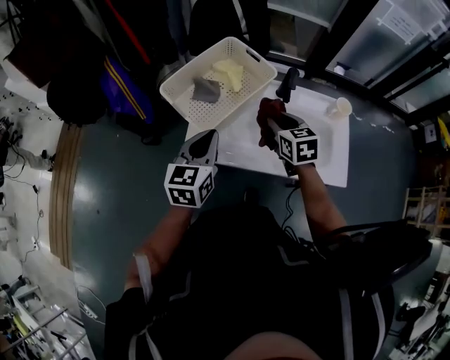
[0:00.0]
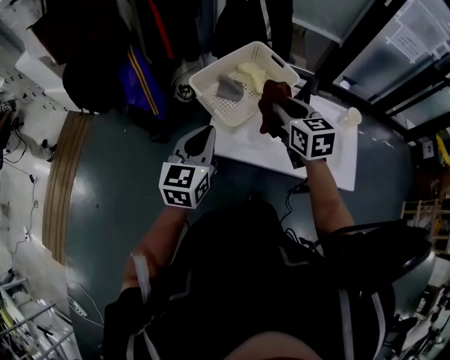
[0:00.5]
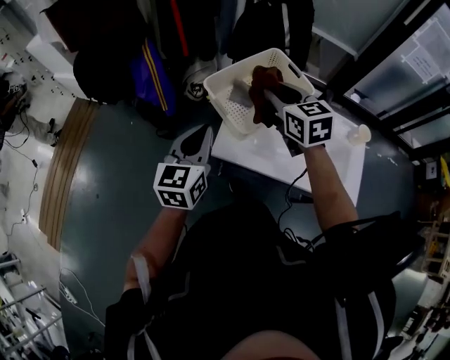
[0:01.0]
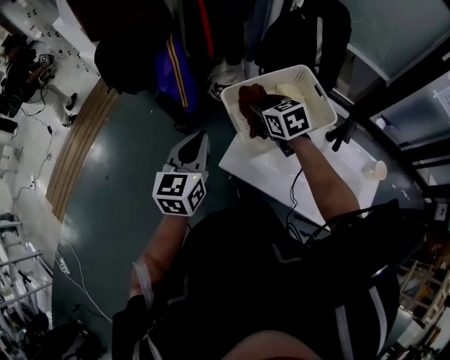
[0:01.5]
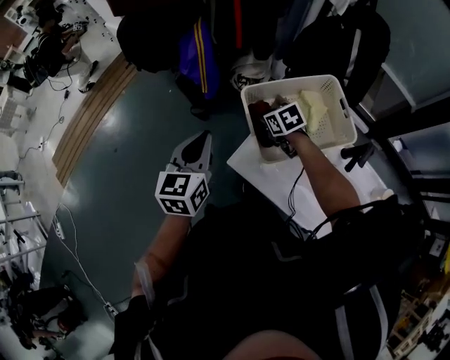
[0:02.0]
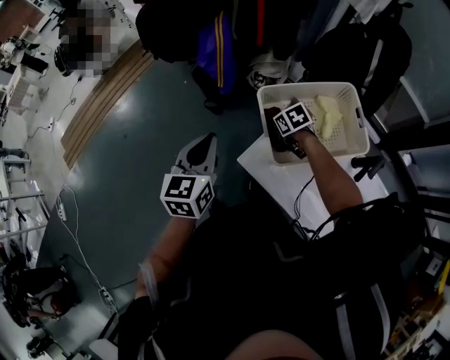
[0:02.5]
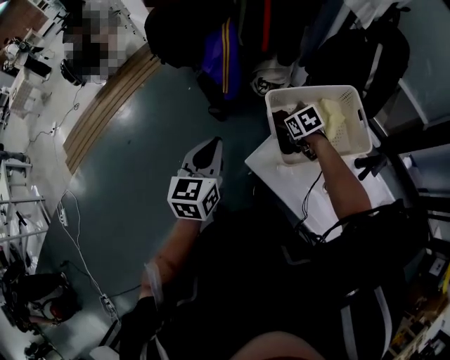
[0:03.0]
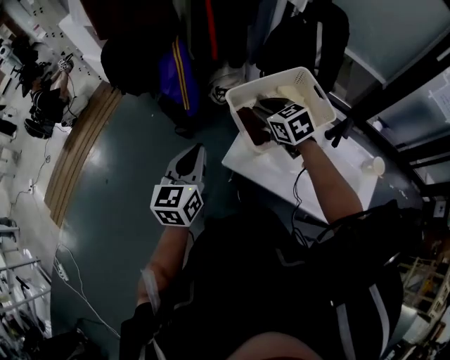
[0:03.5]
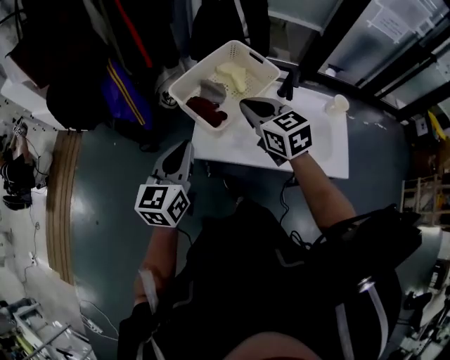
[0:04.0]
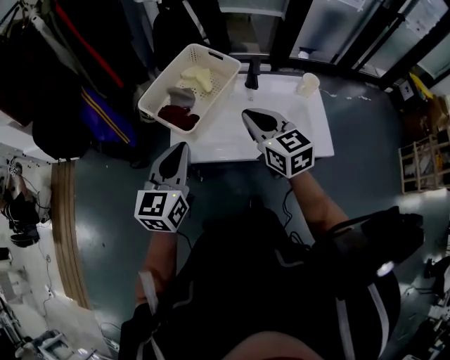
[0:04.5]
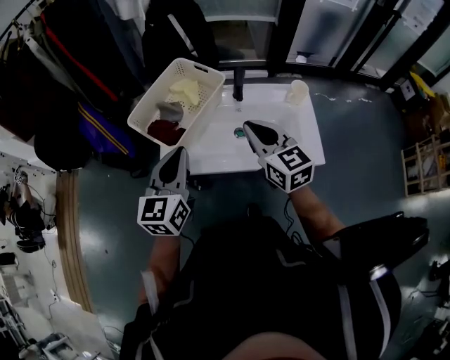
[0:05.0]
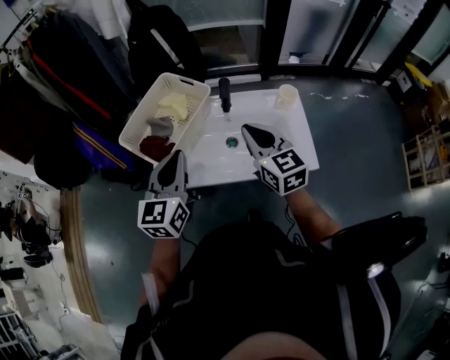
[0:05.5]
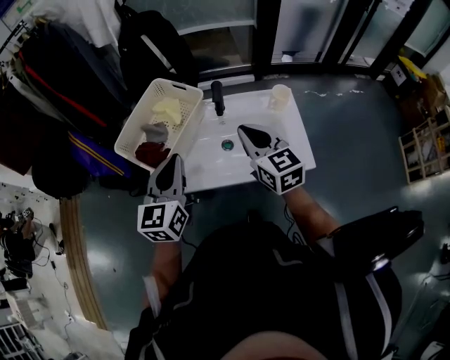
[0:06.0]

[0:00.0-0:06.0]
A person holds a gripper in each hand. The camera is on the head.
0:00.0 to 0:02.0: The right gripper changes place by roughly 30 cm, and changes its angle by roughly 50 degrees, while the left gripper shifts by approximately 20 cm, and turns by approximately 30 degrees.
0:02.0 to 0:04.0: The right gripper shifts roughly 20 cm upward, swivels approximately 40 degrees, and closes its fingers; the left gripper shifts by some 10 cm, and changes its angle by roughly 30 degrees.
0:04.0 to 0:06.0: Both grippers travel together to the right, roughly 20 cm. The right gripper changes its angle by approximately 20 degrees.

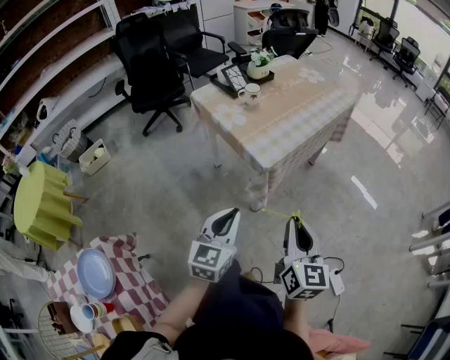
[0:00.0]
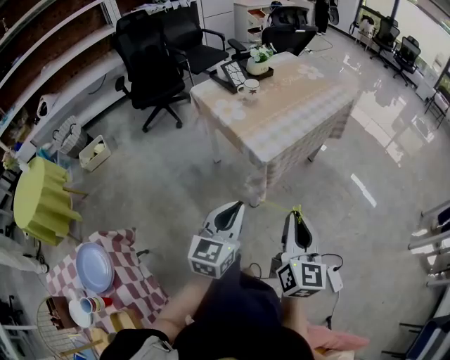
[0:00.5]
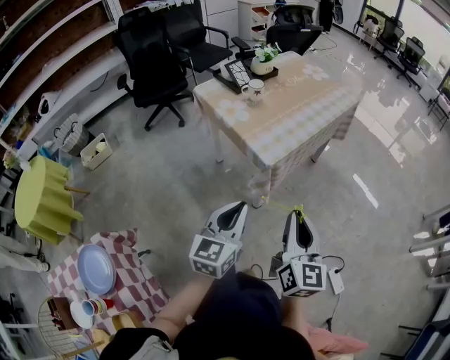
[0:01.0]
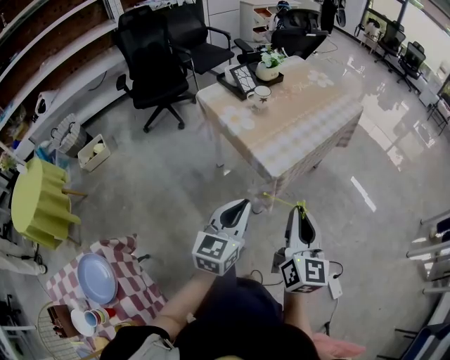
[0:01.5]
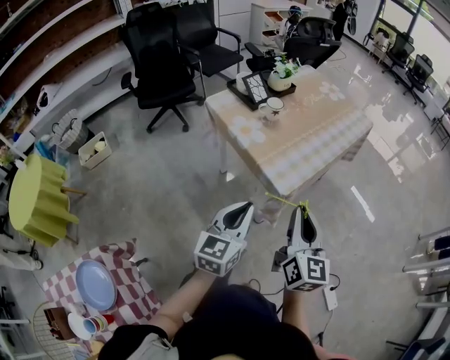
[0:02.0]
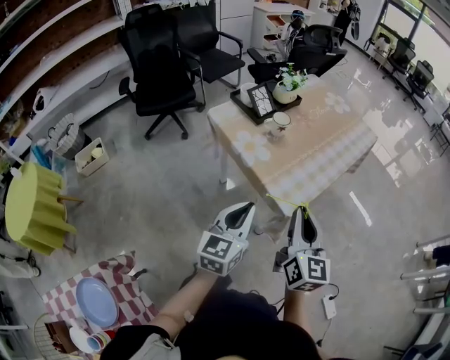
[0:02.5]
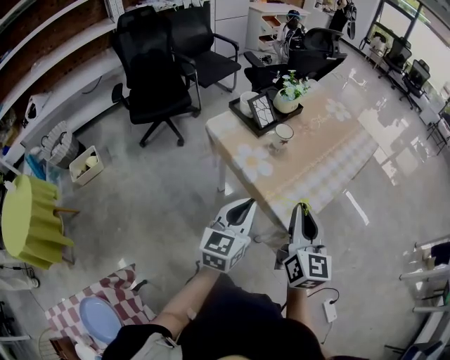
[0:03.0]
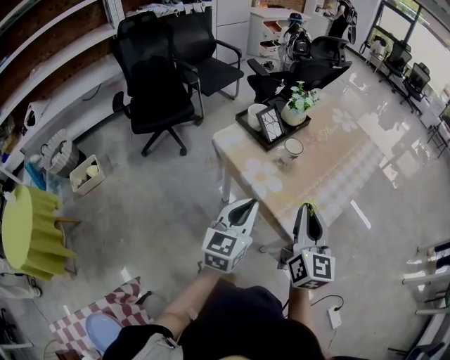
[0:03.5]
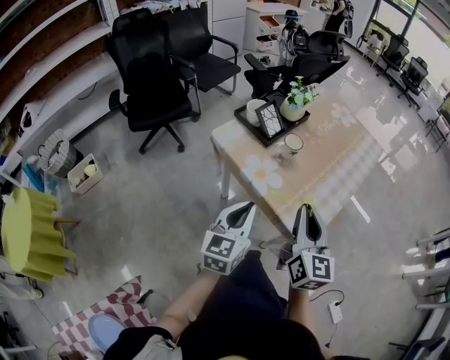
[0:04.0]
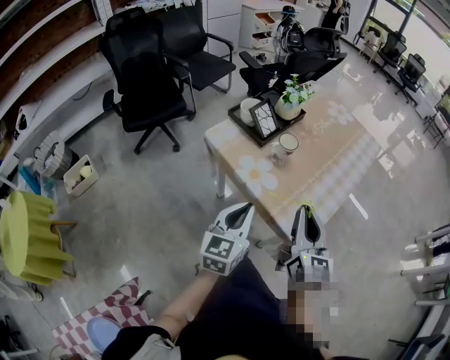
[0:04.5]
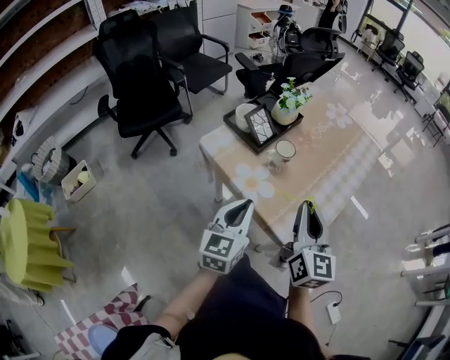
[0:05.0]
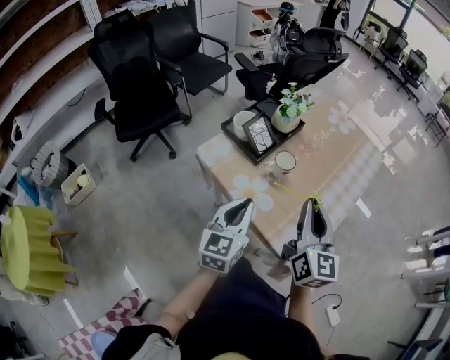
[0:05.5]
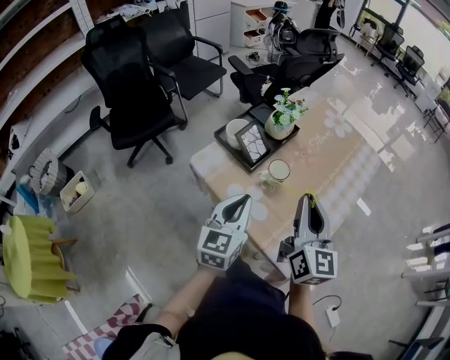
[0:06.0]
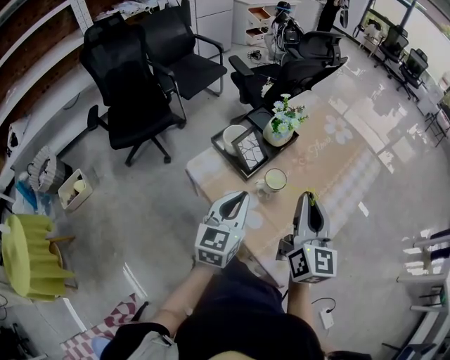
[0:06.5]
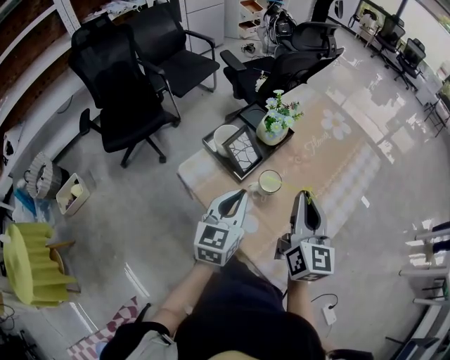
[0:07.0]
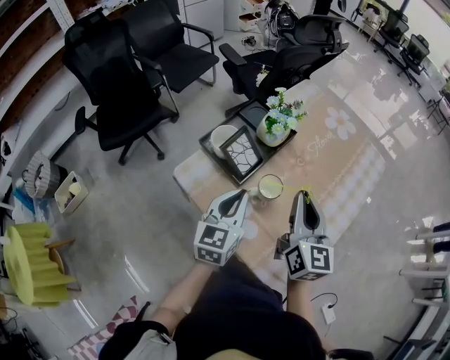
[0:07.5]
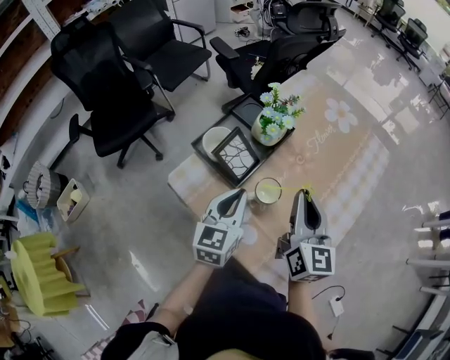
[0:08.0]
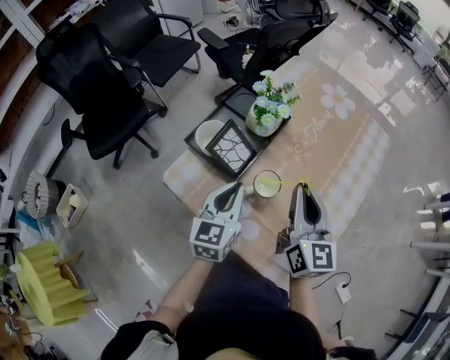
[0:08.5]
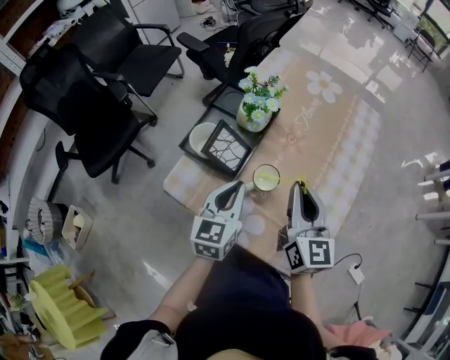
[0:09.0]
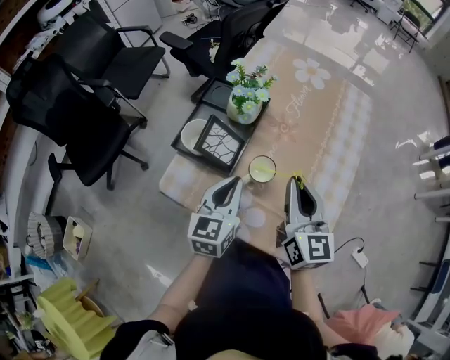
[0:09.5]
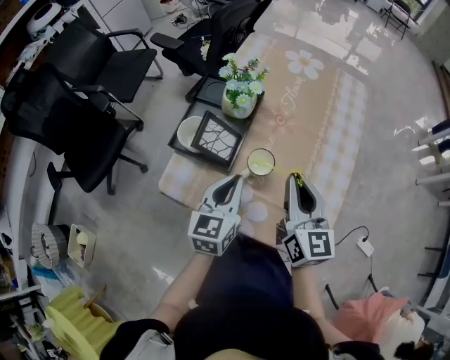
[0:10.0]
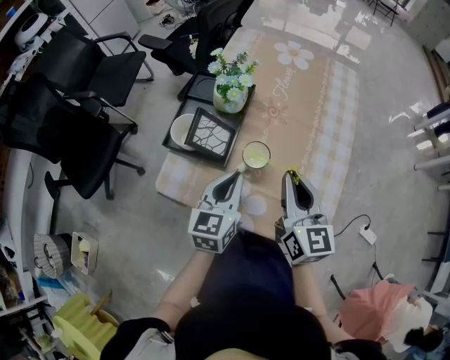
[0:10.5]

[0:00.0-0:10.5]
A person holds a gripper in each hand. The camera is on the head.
0:00.0 to 0:02.0: The left gripper goes roughly 10 cm forward. The right gripper goes approximately 15 cm forward and to the left.
0:02.0 to 0:04.0: Both grippers travel together forward and to the left, about 20 cm.
0:04.0 to 0:06.5: The grippers both shift forward by about 20 cm.
0:06.5 to 0:08.5: The two grippers go some 10 cm forward and downward.
0:08.5 to 0:10.5: The right gripper heads backward, covering some 5 cm.

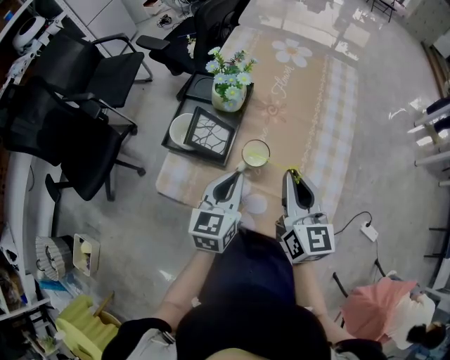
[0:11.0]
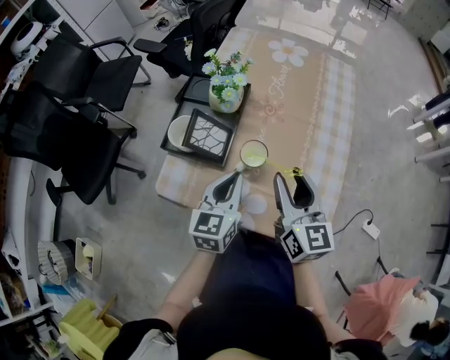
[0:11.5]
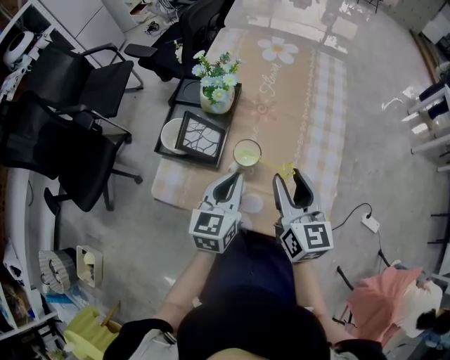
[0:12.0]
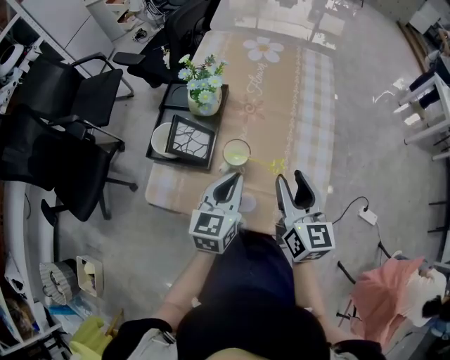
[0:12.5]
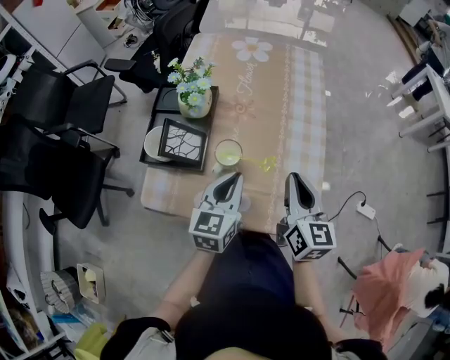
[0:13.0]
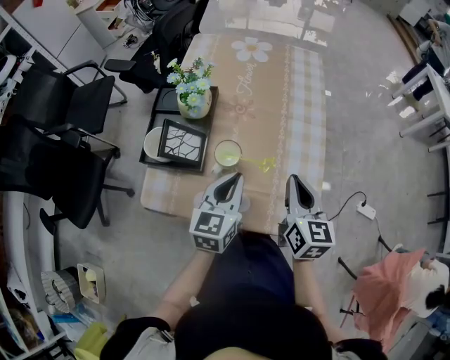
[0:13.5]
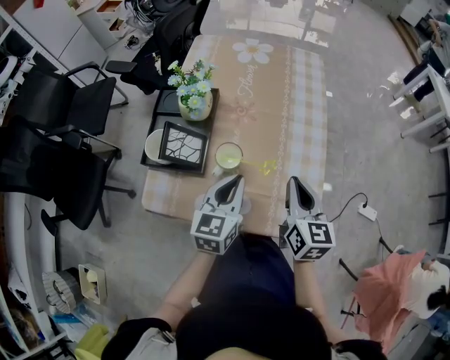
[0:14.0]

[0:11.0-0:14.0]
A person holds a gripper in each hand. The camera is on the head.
0:11.0 to 0:12.5: The right gripper ends up roughly 5 cm from where it was, and opens up.
0:12.5 to 0:14.0: The right gripper closes its fingers.

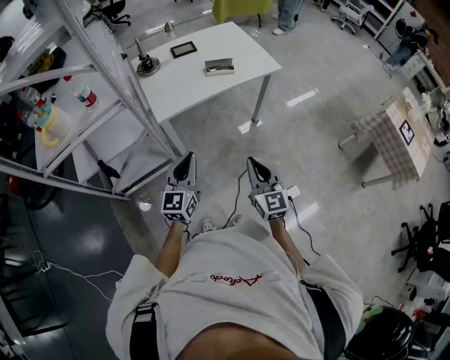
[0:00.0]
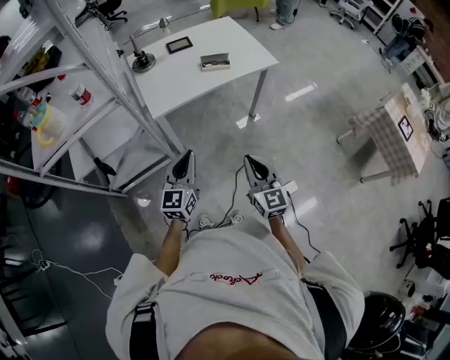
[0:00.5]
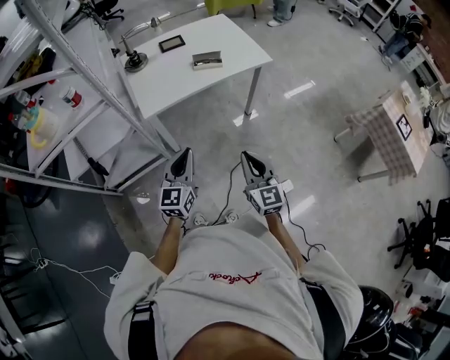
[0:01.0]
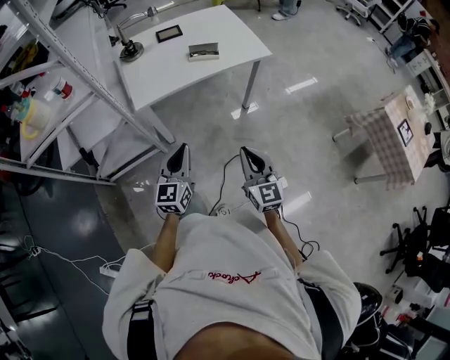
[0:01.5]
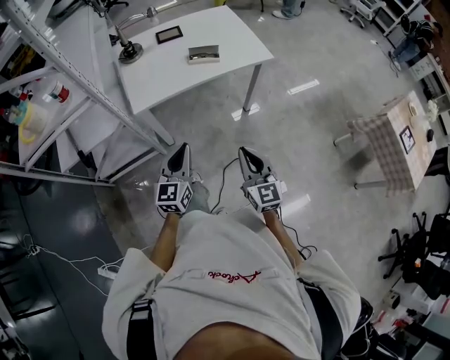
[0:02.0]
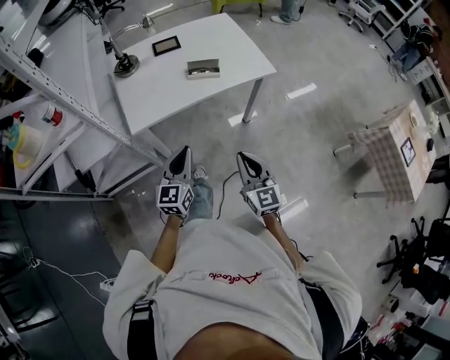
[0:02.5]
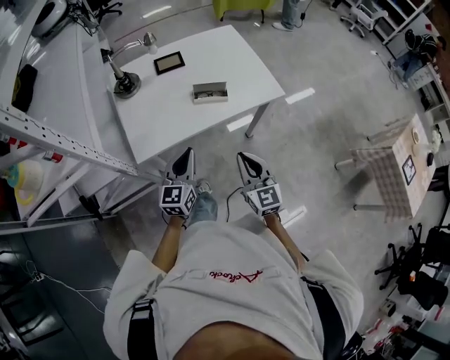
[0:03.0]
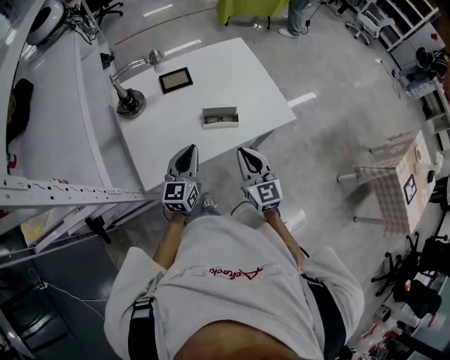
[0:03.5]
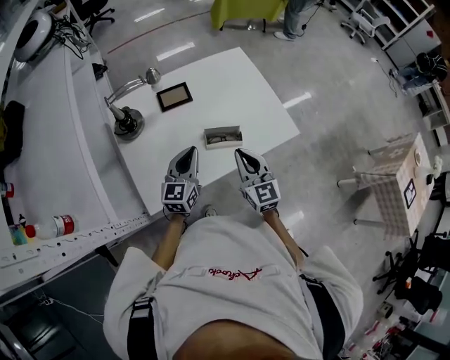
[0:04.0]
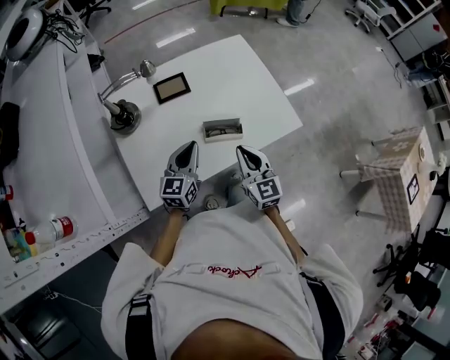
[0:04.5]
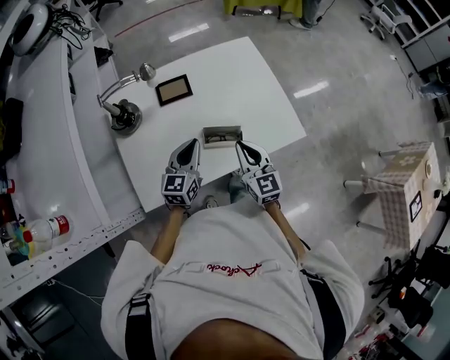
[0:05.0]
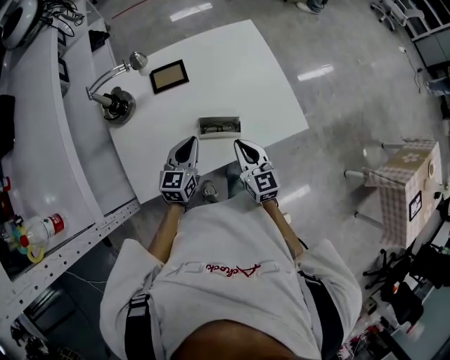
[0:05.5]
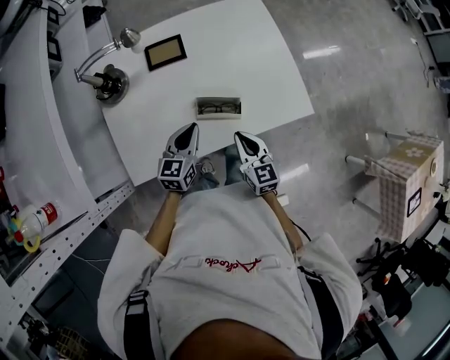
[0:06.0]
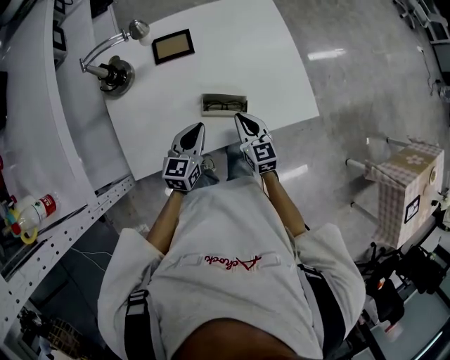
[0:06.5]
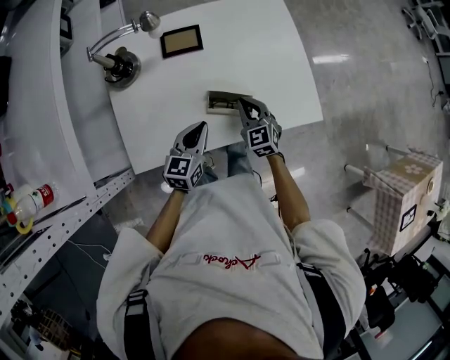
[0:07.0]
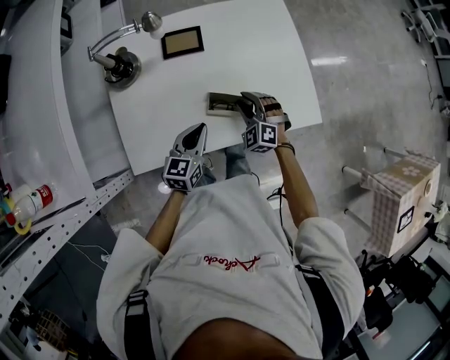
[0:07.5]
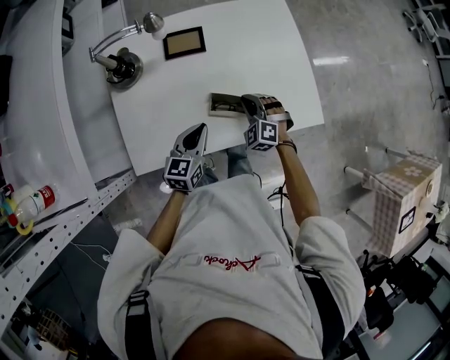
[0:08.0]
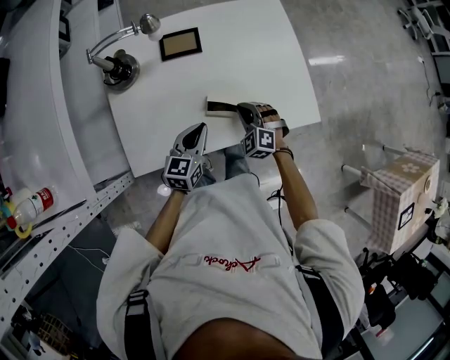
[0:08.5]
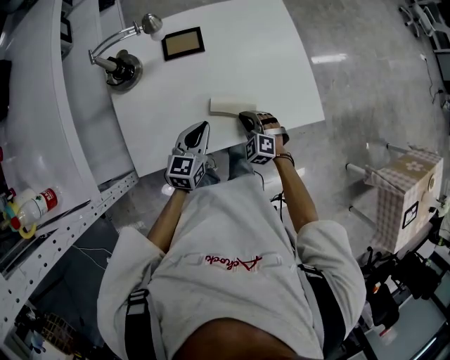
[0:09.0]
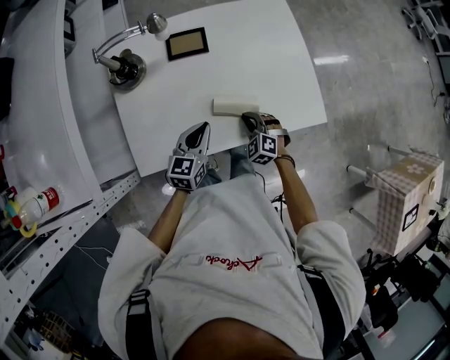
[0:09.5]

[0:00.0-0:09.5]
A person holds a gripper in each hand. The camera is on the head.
0:00.0 to 0:02.0: The right gripper goes approximately 10 cm to the right and forward; the left gripper moves to the right, approximately 10 cm.
0:02.0 to 0:04.0: Both grippers are carried forward, roughly 40 cm.
0:04.0 to 0:05.5: The two grippers go roughly 5 cm downward.
0:05.5 to 0:07.5: The right gripper is displaced downward and forward by roughly 15 cm, rolls counterclockwise, seen from behind, by approximately 60 degrees, and opens up.
0:07.5 to 0:09.5: The right gripper heads backward and downward, covering roughly 10 cm, and closes.
